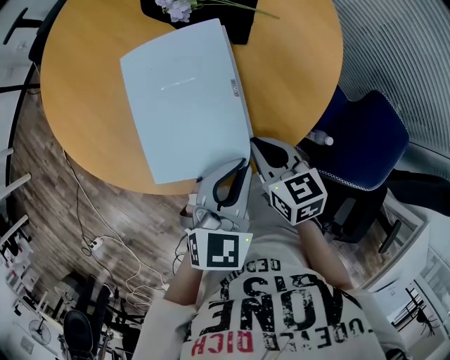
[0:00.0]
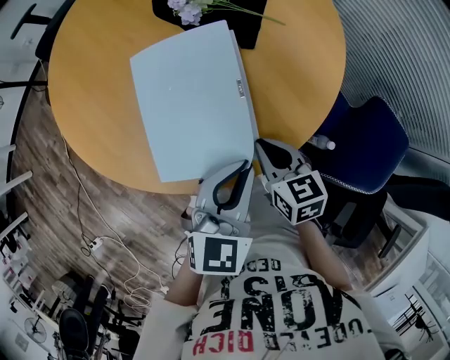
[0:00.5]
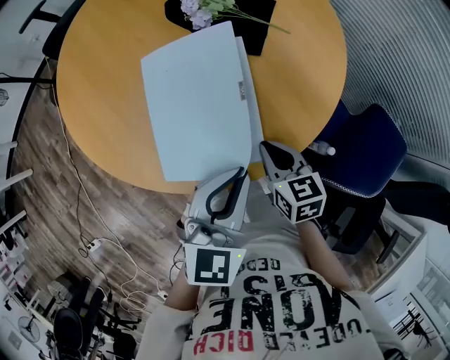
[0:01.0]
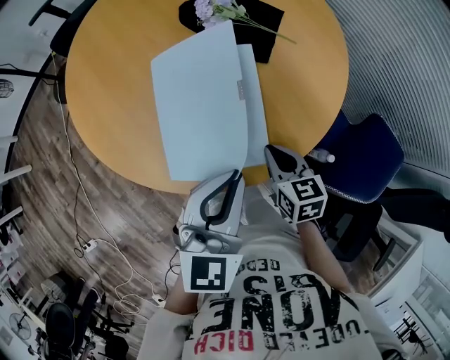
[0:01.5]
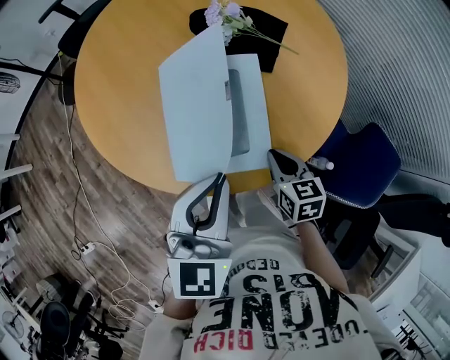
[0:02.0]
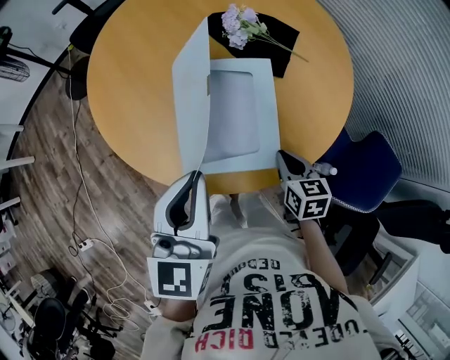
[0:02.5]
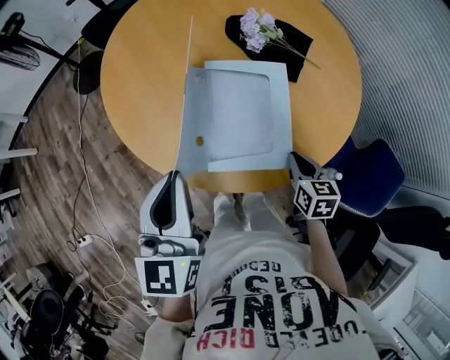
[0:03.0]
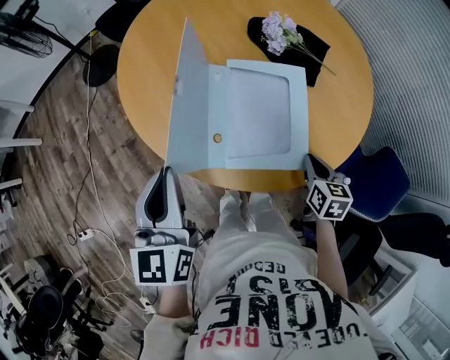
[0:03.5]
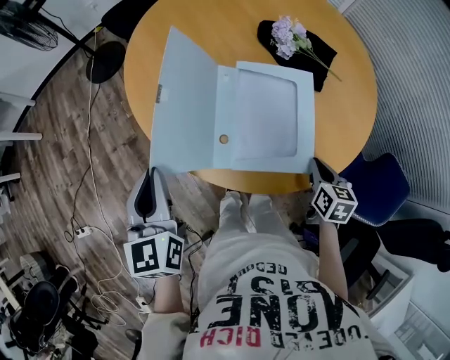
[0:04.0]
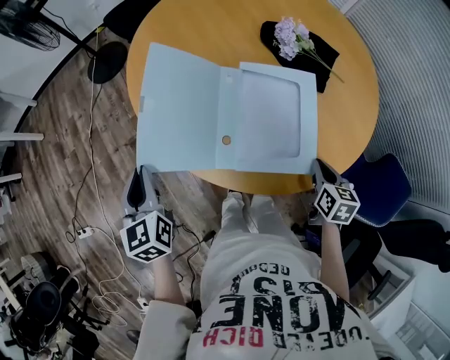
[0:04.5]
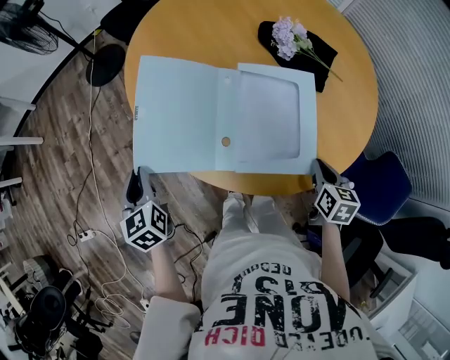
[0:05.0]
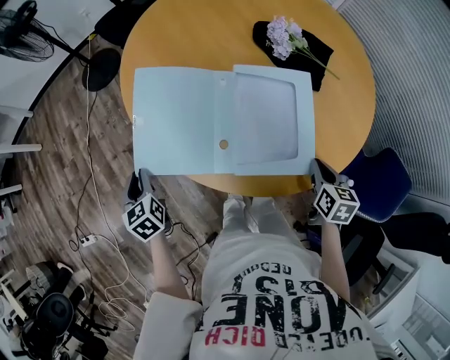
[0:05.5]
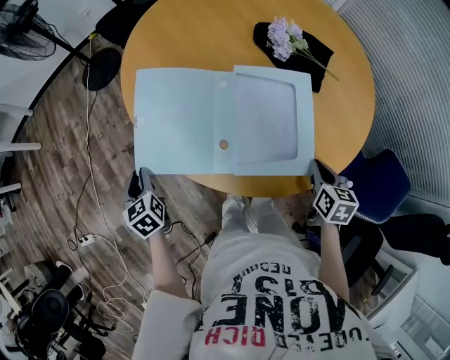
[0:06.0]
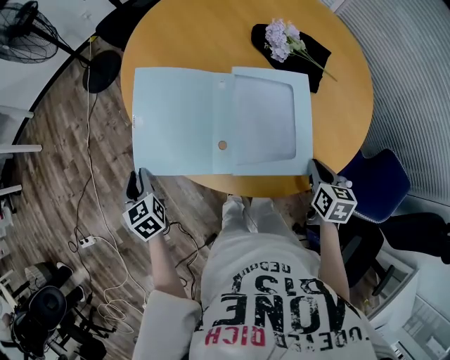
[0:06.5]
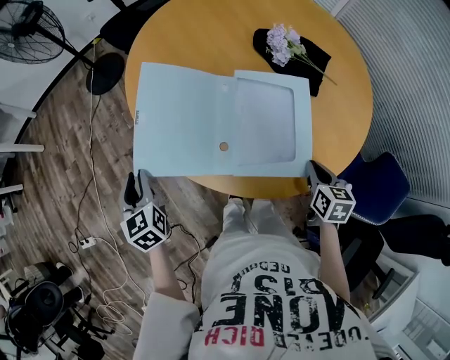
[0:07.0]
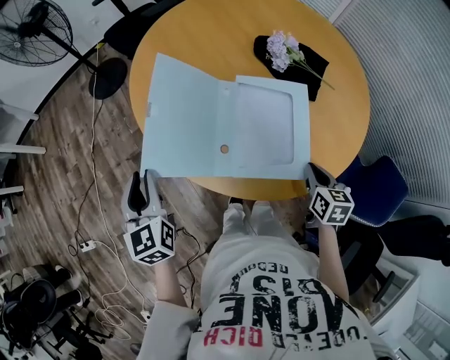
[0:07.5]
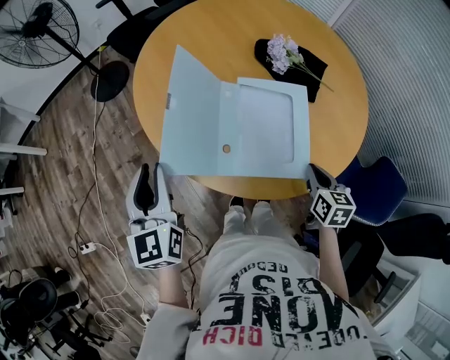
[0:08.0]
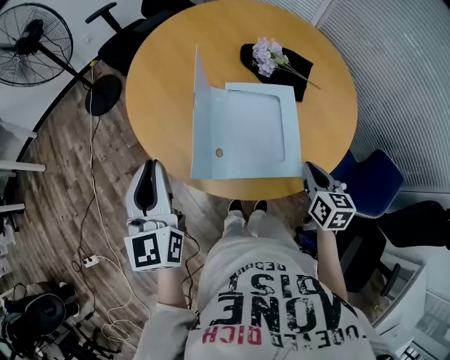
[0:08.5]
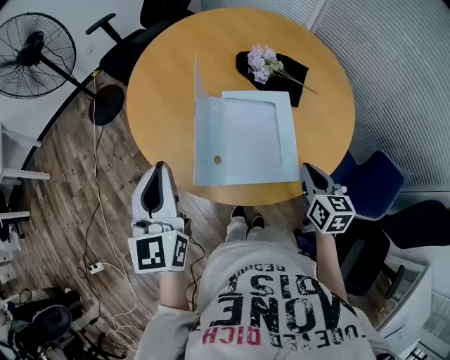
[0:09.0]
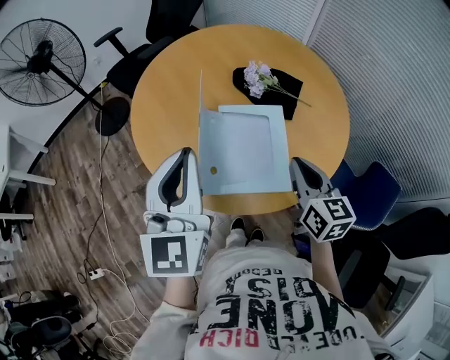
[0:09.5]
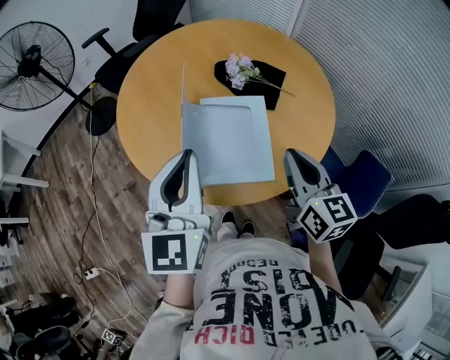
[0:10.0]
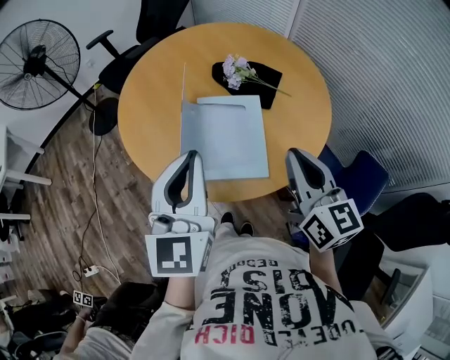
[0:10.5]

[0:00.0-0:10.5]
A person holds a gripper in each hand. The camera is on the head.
0:00.0 to 0:02.0: The left gripper heads upward and to the left, covering roughly 15 cm.
0:02.0 to 0:04.0: The left gripper goes approximately 25 cm to the left, and rotates about 40 degrees.
0:04.0 to 0:06.5: The left gripper moves downward and to the left, approximately 20 cm, and swivels about 20 degrees.
0:06.5 to 0:08.5: The right gripper goes about 10 cm upward. The left gripper moves upward and to the right, about 25 cm, and angles its fingers upward, by roughly 30 degrees.
0:08.5 to 0:10.5: The left gripper goes some 20 cm to the right and upward; the right gripper moves upward, about 20 cm, and turns by roughly 30 degrees.

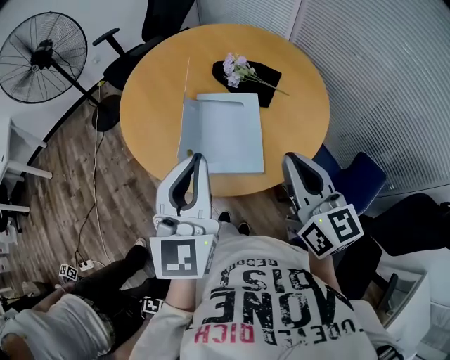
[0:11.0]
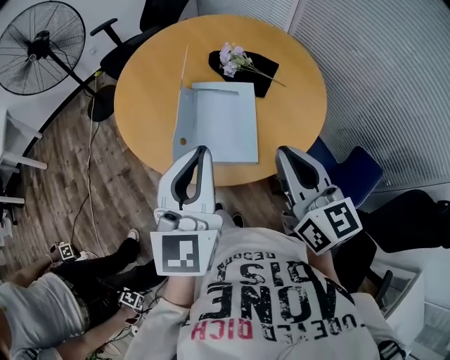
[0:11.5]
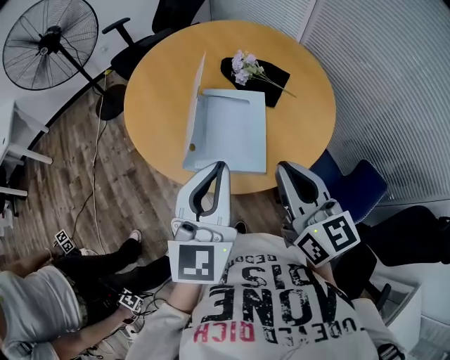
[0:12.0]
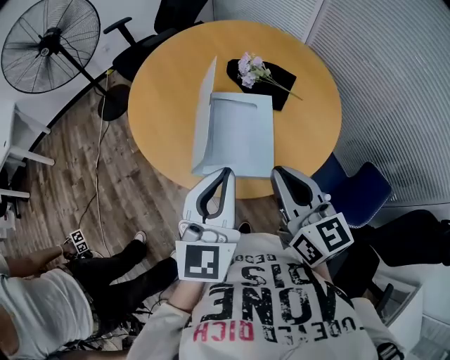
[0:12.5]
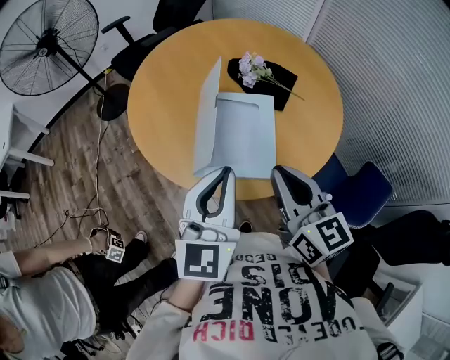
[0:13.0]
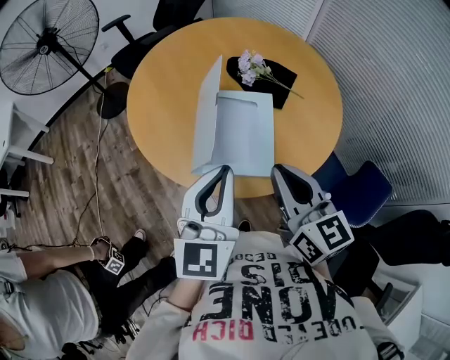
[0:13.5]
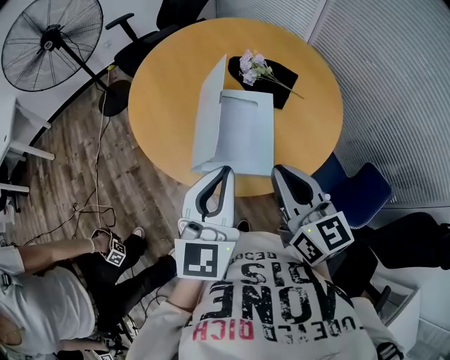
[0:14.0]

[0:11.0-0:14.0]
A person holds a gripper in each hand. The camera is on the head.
0:11.0 to 0:12.5: The right gripper shifts approximately 5 cm to the left.
0:12.5 to 0:14.0: Both grippers stay about where they are.

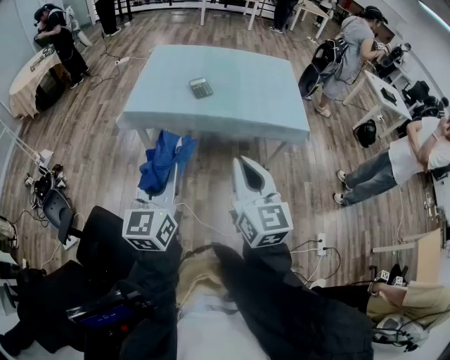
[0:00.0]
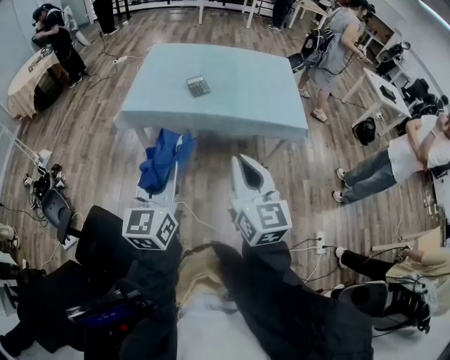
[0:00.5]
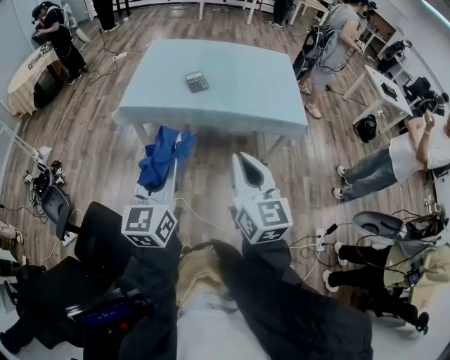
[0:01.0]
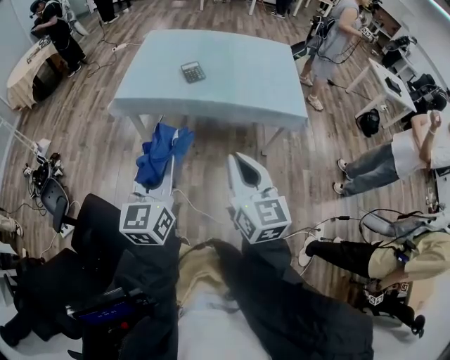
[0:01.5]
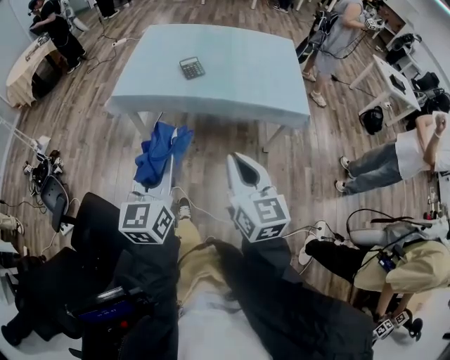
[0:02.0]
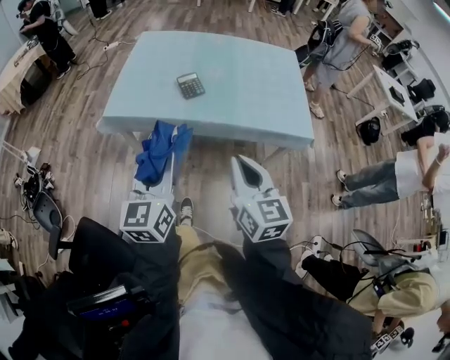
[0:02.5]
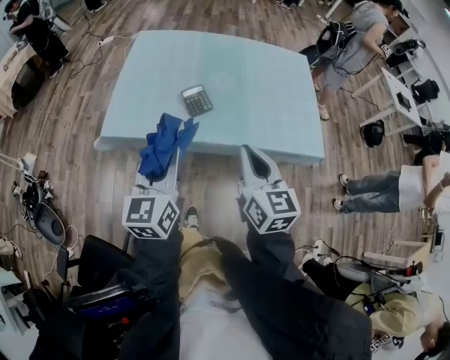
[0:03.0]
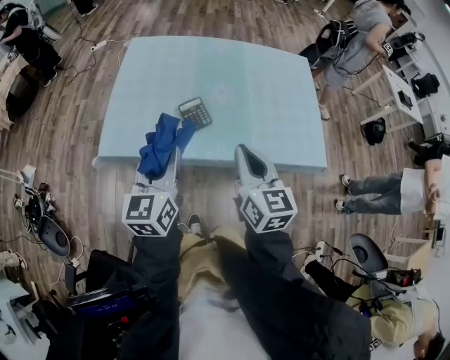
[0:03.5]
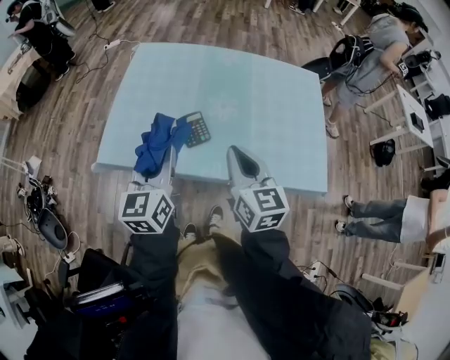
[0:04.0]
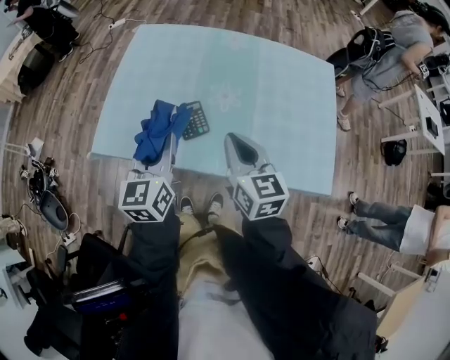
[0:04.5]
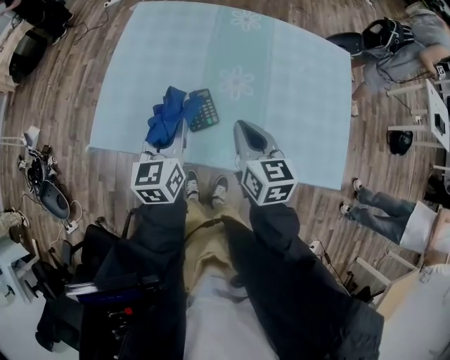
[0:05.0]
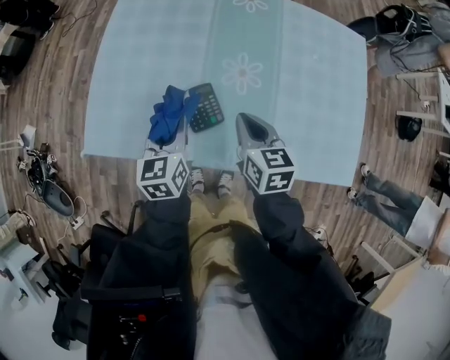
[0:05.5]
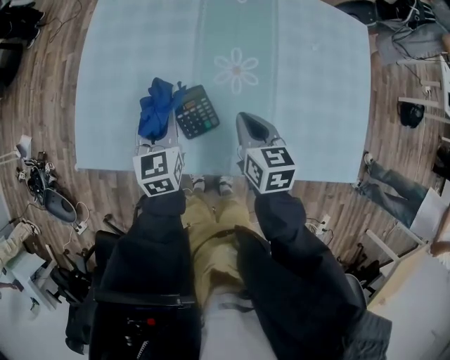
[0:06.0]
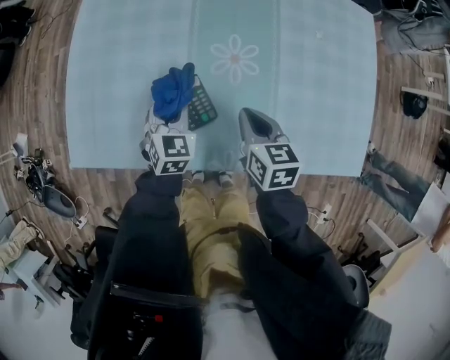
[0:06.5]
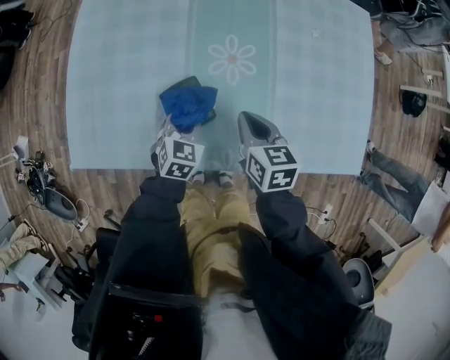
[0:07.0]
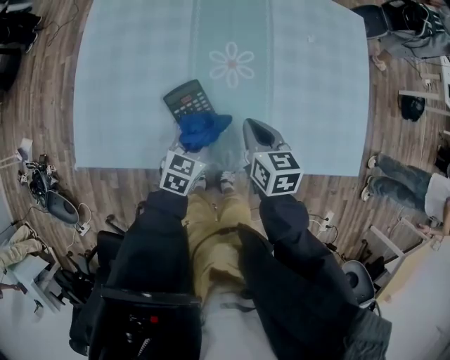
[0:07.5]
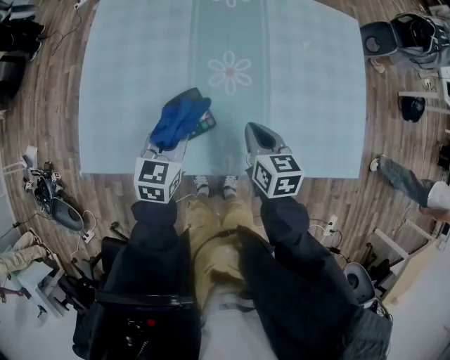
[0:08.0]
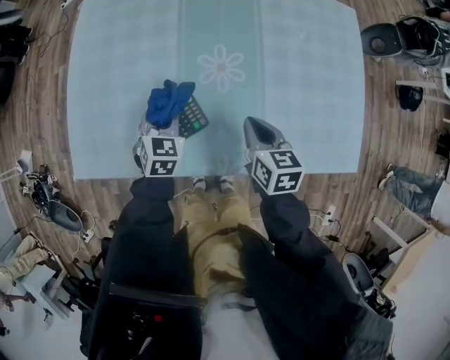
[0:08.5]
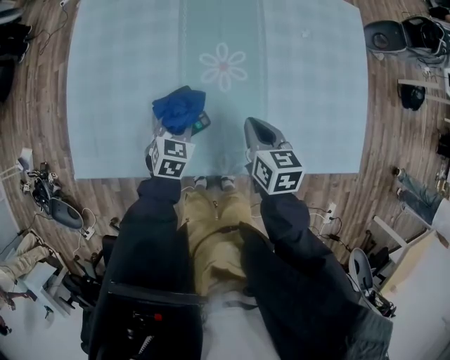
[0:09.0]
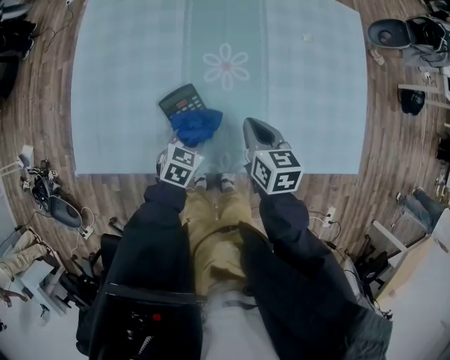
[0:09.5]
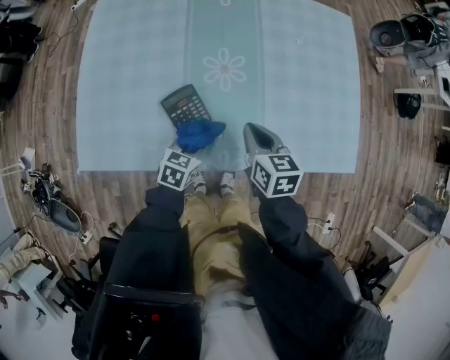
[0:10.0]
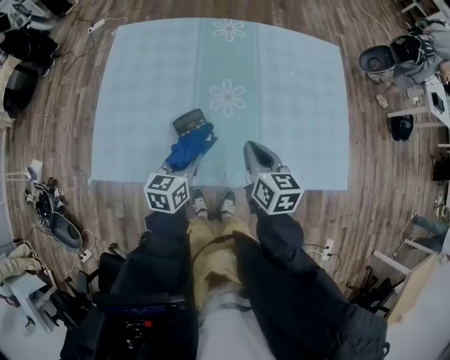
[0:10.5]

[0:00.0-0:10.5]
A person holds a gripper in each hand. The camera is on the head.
0:00.0 to 0:02.0: The left gripper heads to the right, covering some 5 cm, while the right gripper heads downward and to the right, covering some 10 cm.
0:02.0 to 0:04.0: Both grippers are carried forward, some 50 cm.
0:04.0 to 0:06.5: Both grippers travel together downward and forward, about 35 cm. The right gripper changes its angle by some 30 degrees, while the left gripper tilts its fingers about 30 degrees downward.
0:06.5 to 0:08.5: The left gripper swings up and down, some 10 cm each way, with 2 reversals.
0:08.5 to 0:10.5: The right gripper shifts about 10 cm upward, while the left gripper shifts roughly 15 cm backward and upward, and rotates approximately 40 degrees.

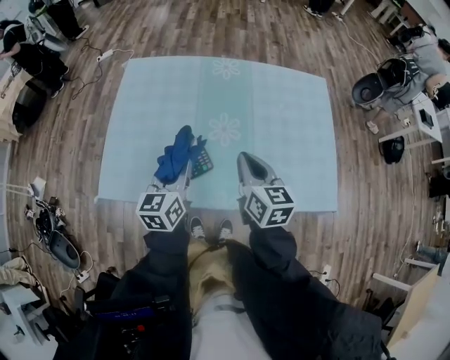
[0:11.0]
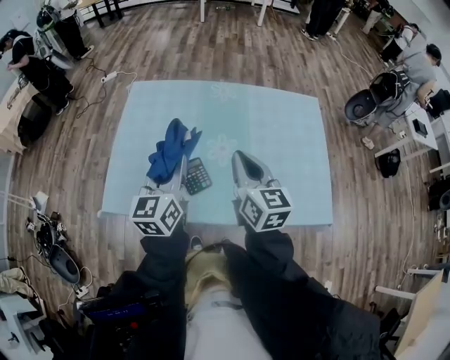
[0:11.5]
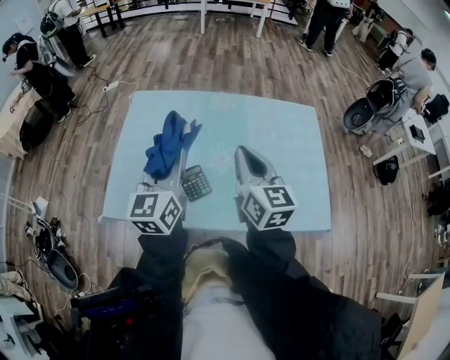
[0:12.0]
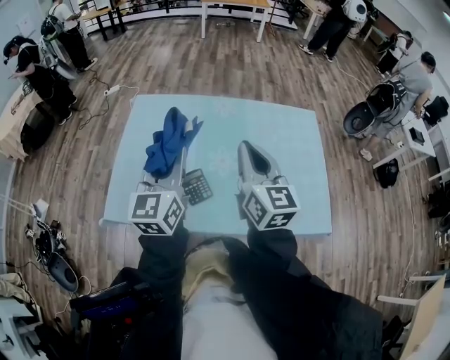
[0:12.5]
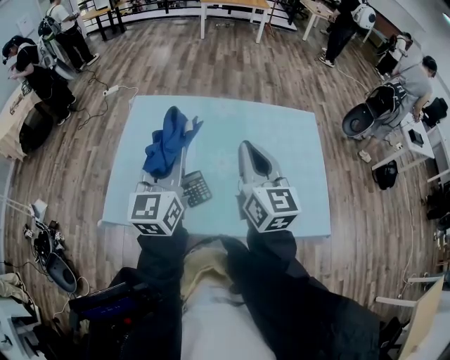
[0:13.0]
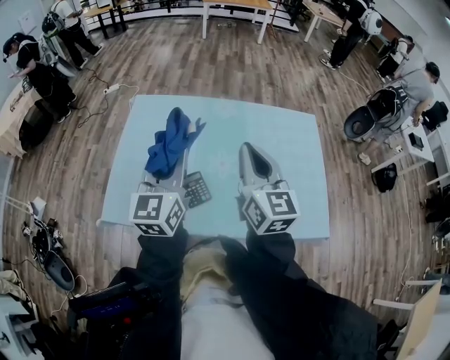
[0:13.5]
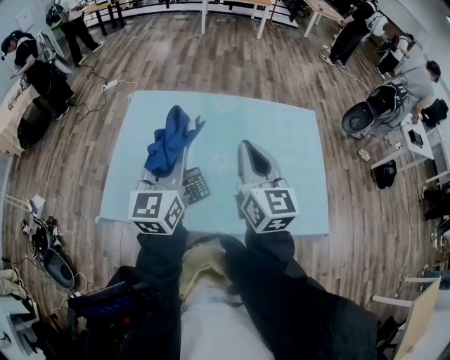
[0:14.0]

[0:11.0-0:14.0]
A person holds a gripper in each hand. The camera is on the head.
0:11.0 to 0:12.5: Both grippers travel together upward, roughly 15 cm. The left gripper changes its angle by some 20 degrees, while the right gripper swivels some 20 degrees.
0:12.5 to 0:14.0: Both grippers stay put.
